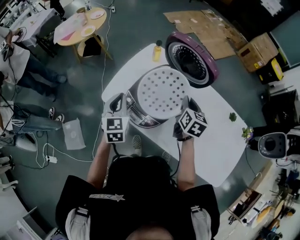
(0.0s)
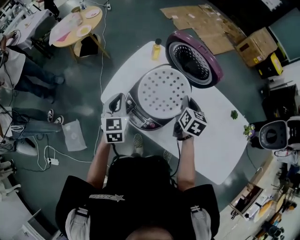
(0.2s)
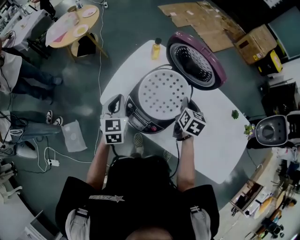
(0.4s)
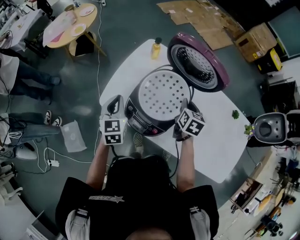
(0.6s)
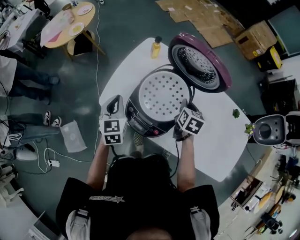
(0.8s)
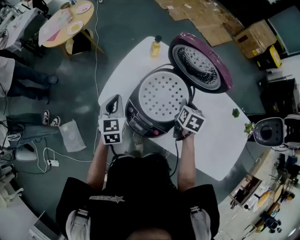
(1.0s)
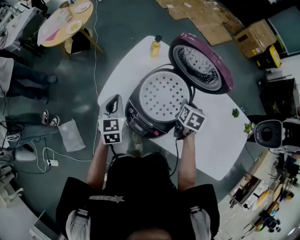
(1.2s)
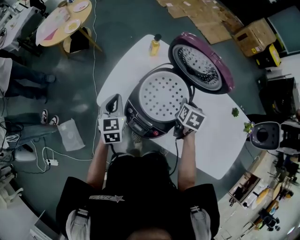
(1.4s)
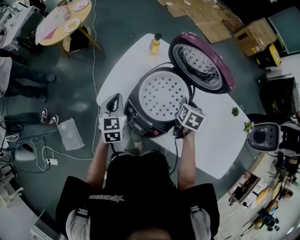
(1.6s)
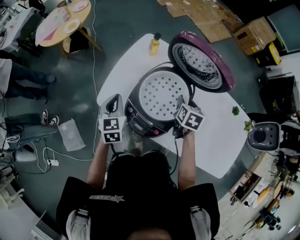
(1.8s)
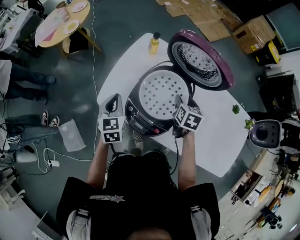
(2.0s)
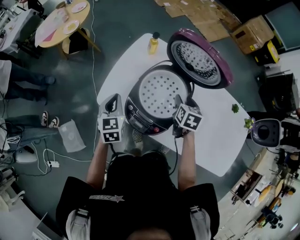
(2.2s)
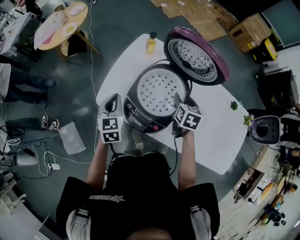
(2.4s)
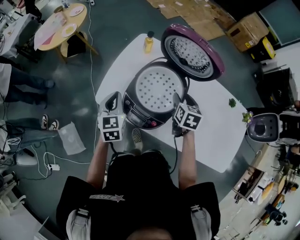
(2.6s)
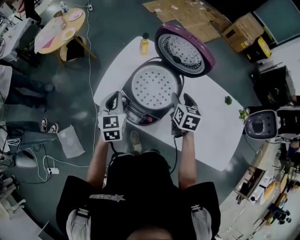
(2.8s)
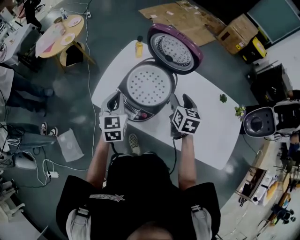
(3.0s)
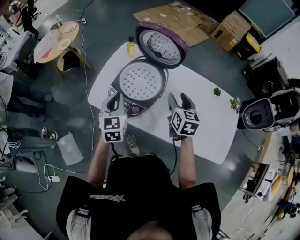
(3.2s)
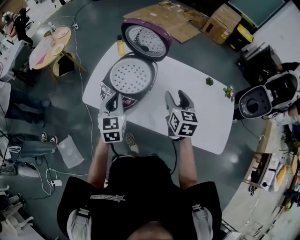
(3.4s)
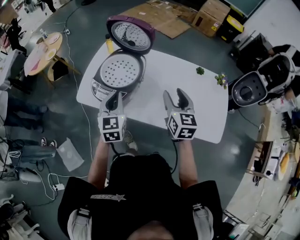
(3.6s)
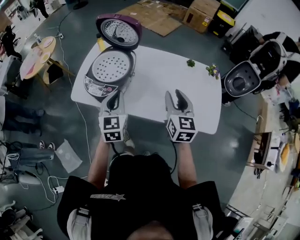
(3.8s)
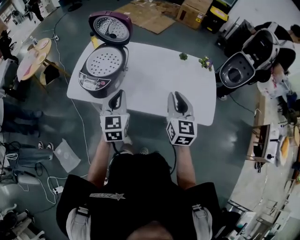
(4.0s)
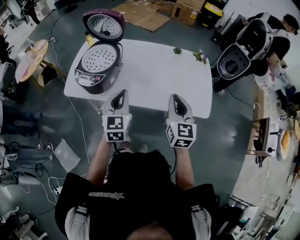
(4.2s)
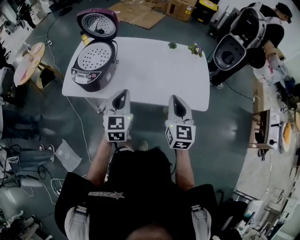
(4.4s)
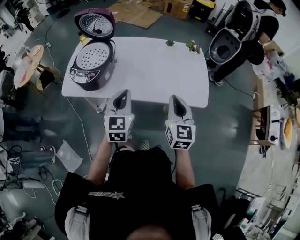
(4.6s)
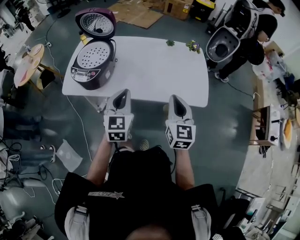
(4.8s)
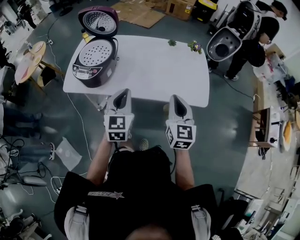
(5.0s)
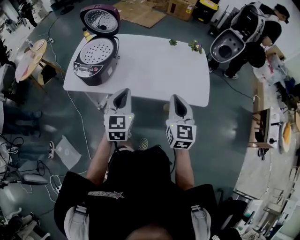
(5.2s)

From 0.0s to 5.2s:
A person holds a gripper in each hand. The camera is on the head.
From 0.0s to 1.8s: The left gripper travels downward and forward by roughly 10 cm, while the right gripper is displaced downward by some 10 cm, and opens.
From 1.8s to 3.4s: The right gripper goes some 25 cm backward, upward and to the right, and changes its angle by about 30 degrees. Meanwhile the left gripper shifts about 20 cm to the right, backward and upward.
From 3.4s to 5.2s: The left gripper goes some 30 cm to the right and backward, and swivels some 20 degrees, while the right gripper moves backward and to the right, some 35 cm, swivels about 20 degrees, and closes up.

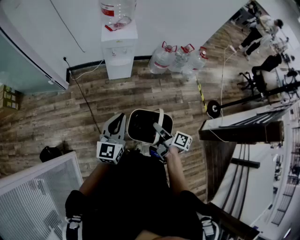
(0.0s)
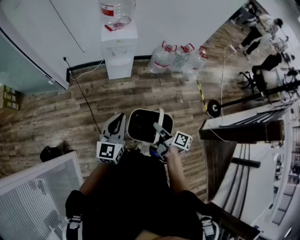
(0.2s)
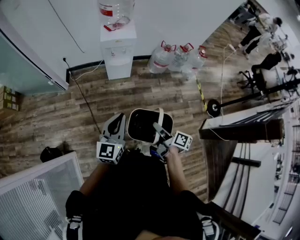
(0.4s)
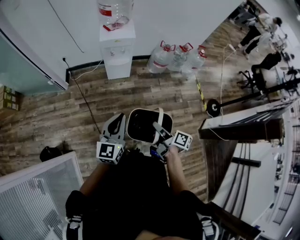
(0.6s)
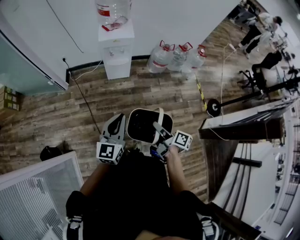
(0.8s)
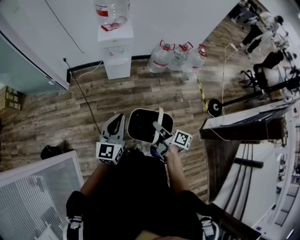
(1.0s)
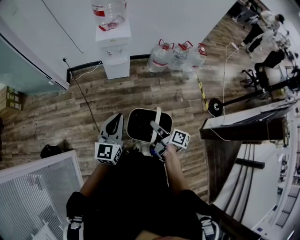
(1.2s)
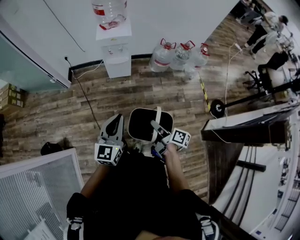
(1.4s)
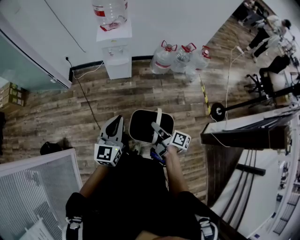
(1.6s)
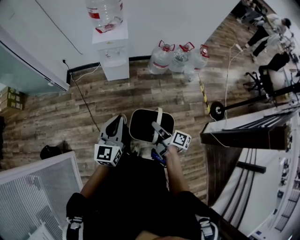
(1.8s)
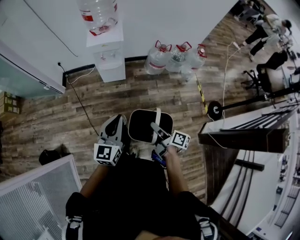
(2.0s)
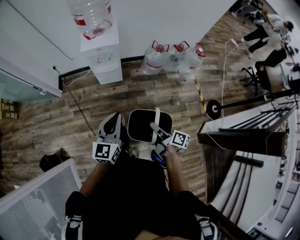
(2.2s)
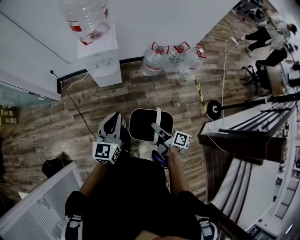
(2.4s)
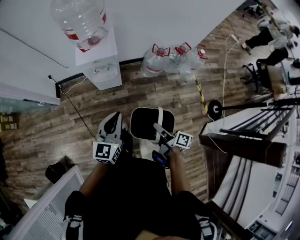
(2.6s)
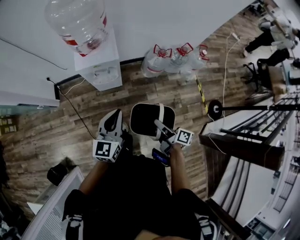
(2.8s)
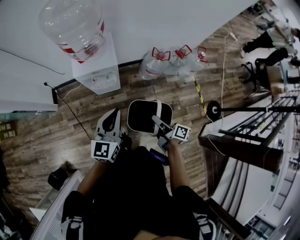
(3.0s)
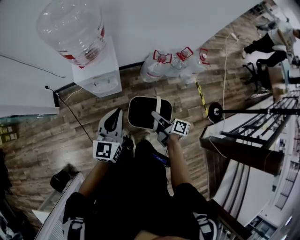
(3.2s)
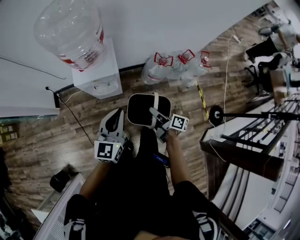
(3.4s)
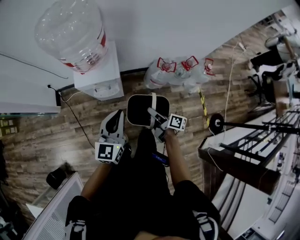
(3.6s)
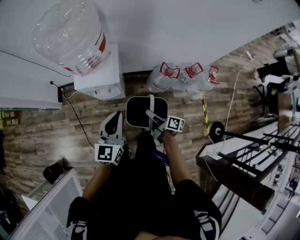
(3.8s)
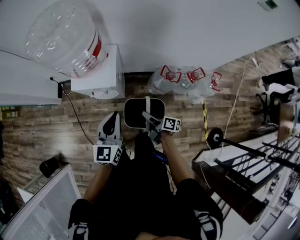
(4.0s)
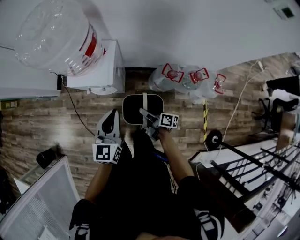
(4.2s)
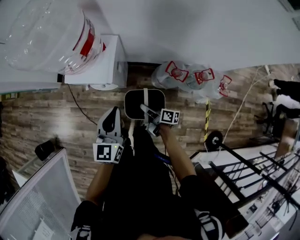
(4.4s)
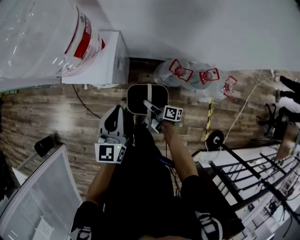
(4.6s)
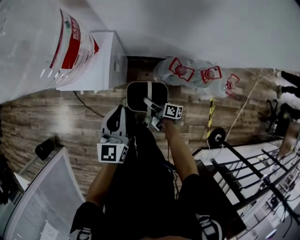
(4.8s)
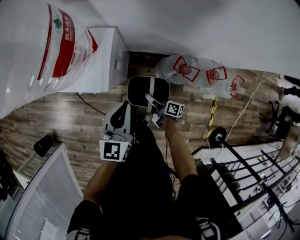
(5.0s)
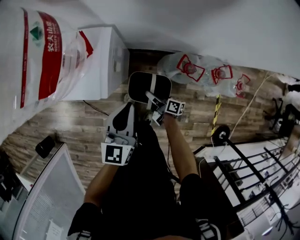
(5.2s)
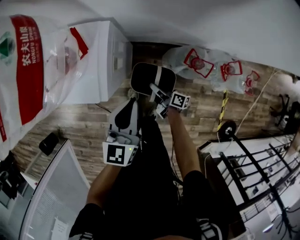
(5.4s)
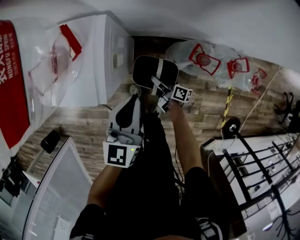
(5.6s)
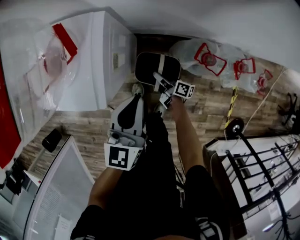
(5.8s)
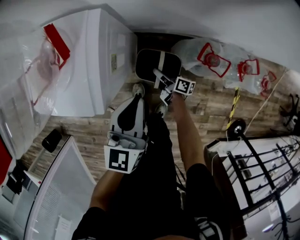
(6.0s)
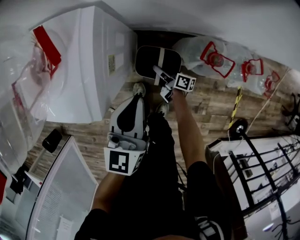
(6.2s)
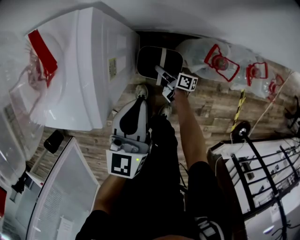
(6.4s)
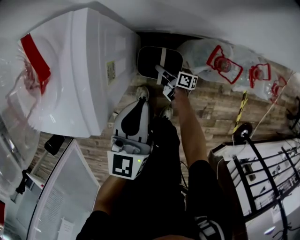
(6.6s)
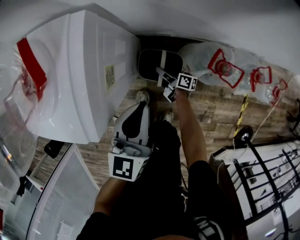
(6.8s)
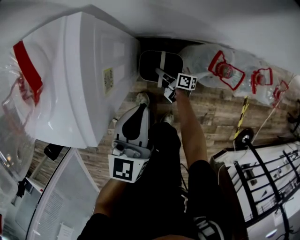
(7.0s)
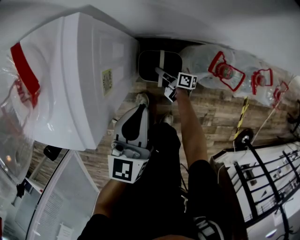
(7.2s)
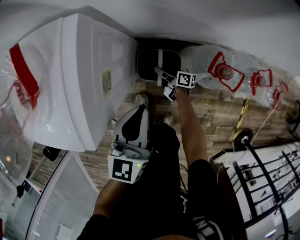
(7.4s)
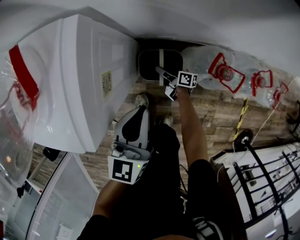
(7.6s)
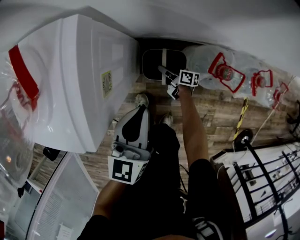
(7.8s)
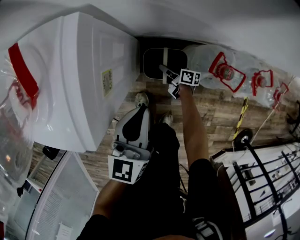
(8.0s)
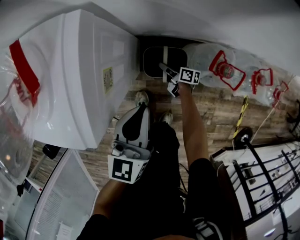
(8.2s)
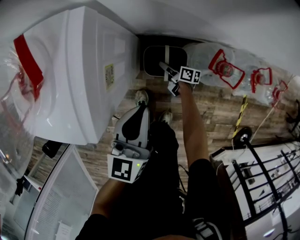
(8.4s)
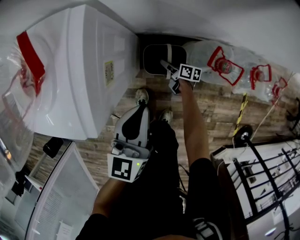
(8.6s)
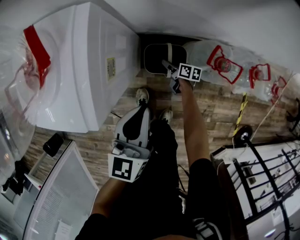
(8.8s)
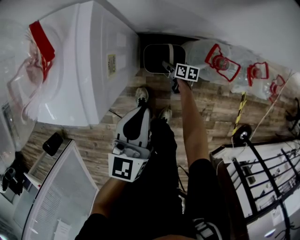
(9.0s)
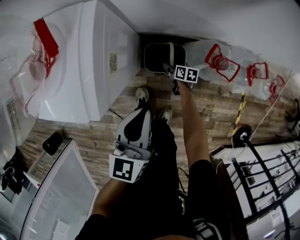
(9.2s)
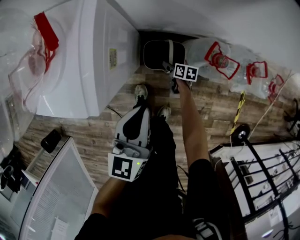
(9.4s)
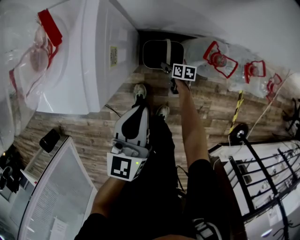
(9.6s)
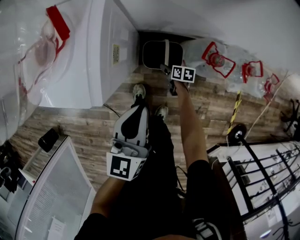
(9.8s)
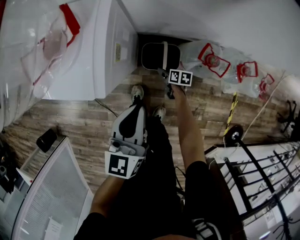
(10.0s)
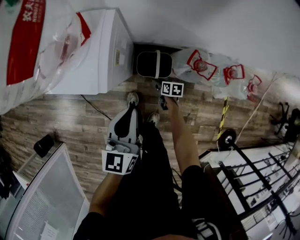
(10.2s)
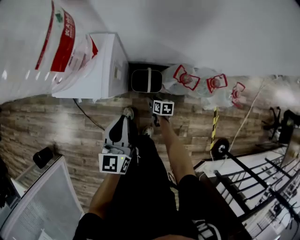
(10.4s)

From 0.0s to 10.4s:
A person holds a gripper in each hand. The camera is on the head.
From 0.0s to 1.4s: The left gripper shifts by some 10 cm.
From 1.4s to 3.0s: The left gripper changes place by some 40 cm.
From 3.0s to 4.4s: The left gripper ends up some 20 cm from where it was, and swivels about 30 degrees.
From 4.4s to 6.0s: The left gripper moves downward, approximately 20 cm.
From 6.0s to 7.4s: The left gripper moves downward, approximately 10 cm.
From 7.4s to 9.0s: The left gripper shifts by some 5 cm.
From 9.0s to 10.4s: The left gripper heads upward, covering approximately 15 cm.

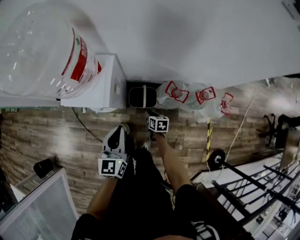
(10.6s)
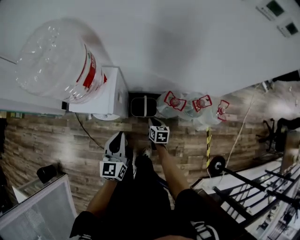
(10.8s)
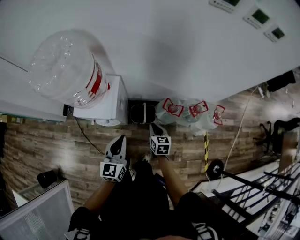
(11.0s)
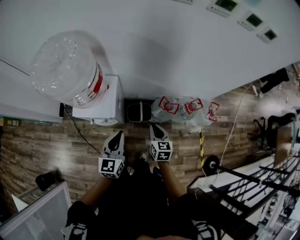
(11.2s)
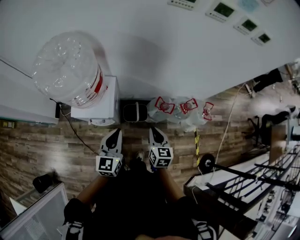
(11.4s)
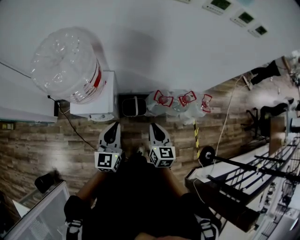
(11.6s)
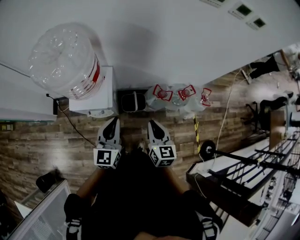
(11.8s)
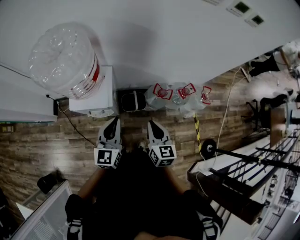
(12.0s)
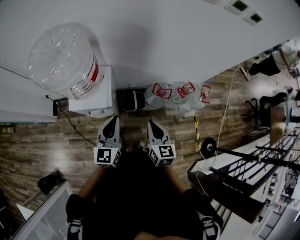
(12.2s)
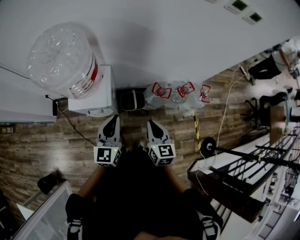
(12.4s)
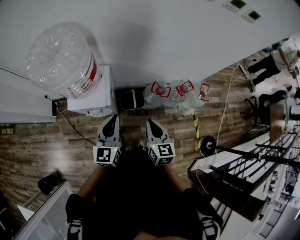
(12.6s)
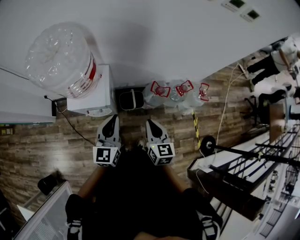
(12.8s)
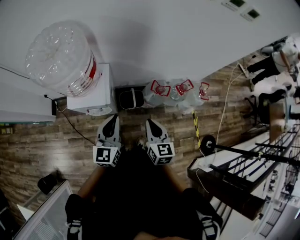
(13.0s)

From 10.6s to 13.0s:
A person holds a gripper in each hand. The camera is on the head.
From 10.6s to 11.8s: The left gripper goes some 15 cm upward.

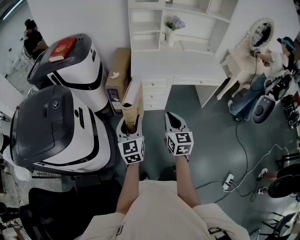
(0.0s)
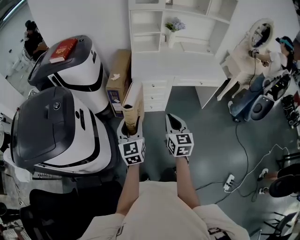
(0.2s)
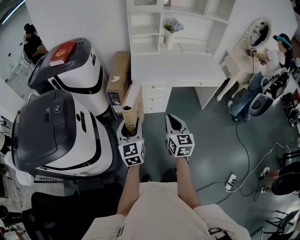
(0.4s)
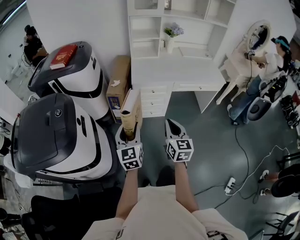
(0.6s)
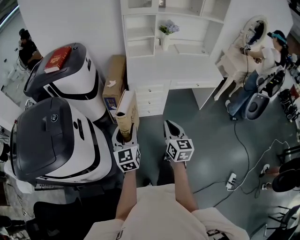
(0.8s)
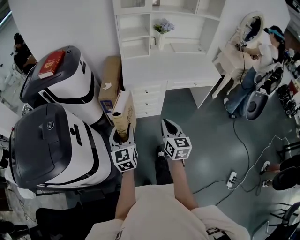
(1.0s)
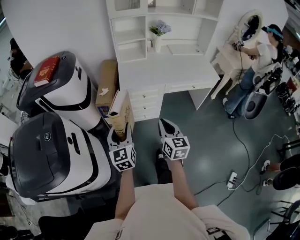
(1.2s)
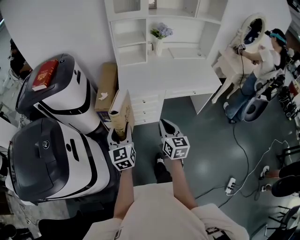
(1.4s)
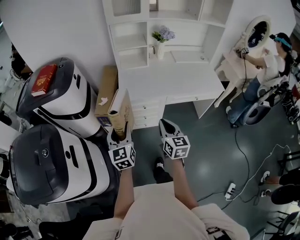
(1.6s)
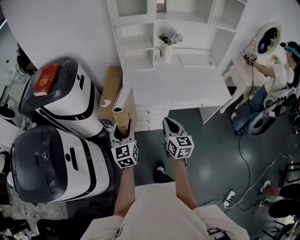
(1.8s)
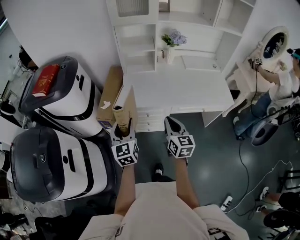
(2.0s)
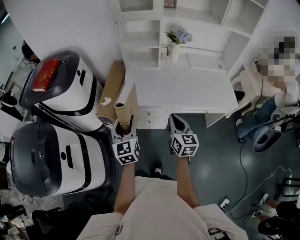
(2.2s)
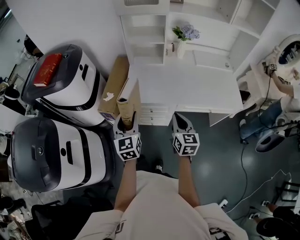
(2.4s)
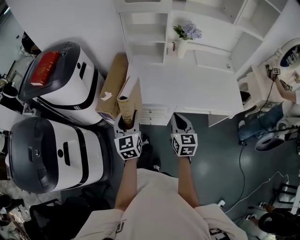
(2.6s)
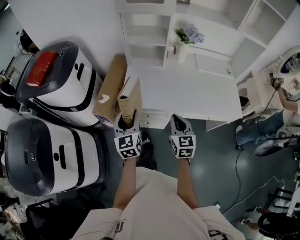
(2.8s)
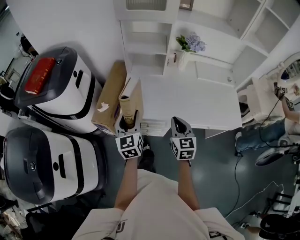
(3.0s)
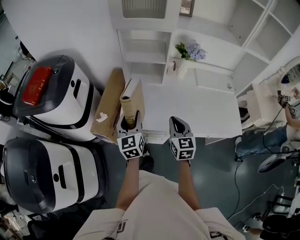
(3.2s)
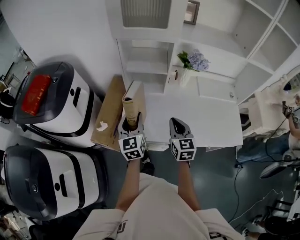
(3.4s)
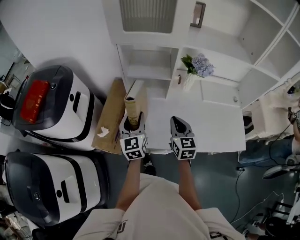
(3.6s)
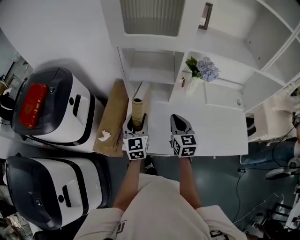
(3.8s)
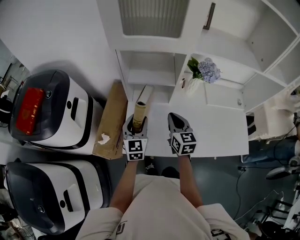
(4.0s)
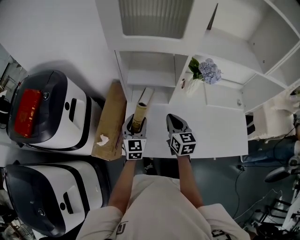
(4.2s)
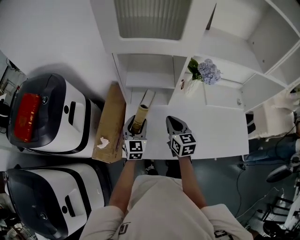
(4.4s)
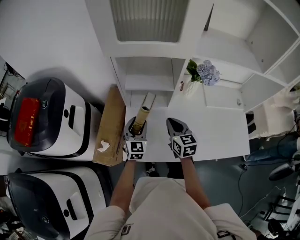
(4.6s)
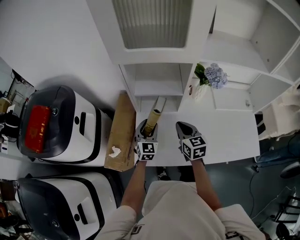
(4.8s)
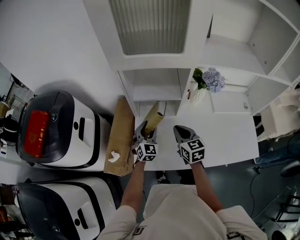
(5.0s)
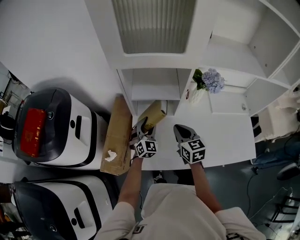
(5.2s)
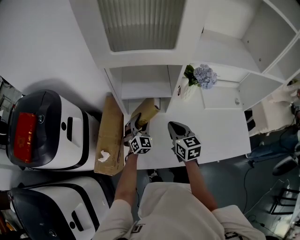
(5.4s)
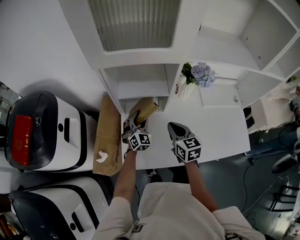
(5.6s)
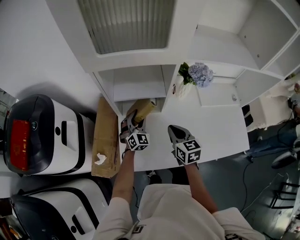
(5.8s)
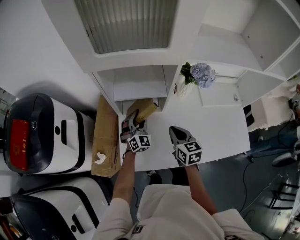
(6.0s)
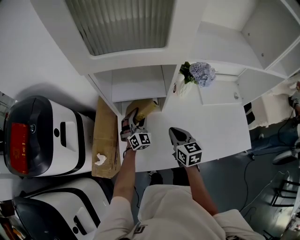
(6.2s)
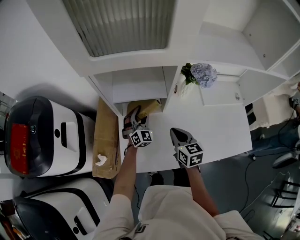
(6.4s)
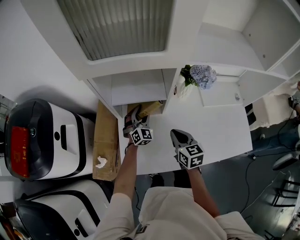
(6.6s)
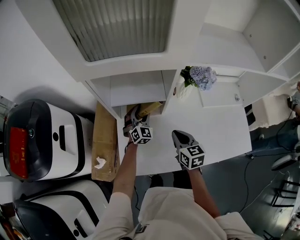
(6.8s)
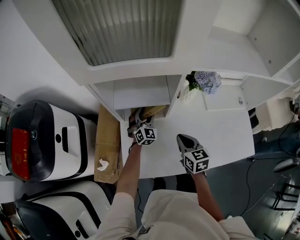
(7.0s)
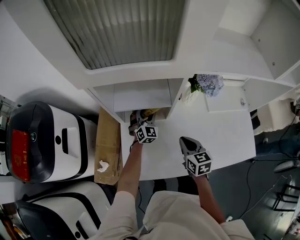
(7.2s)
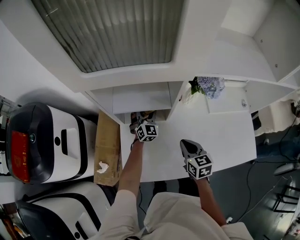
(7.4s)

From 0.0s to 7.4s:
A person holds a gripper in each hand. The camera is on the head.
From 0.0s to 1.4s: The grippers both shift forward by some 15 cm.
From 1.4s to 3.0s: The left gripper is displaced forward by approximately 30 cm; the right gripper is displaced forward and to the right by approximately 35 cm.
From 3.0s to 4.4s: Both grippers travel together forward, approximately 30 cm. The left gripper turns by about 20 degrees.
From 4.4s to 6.0s: The left gripper travels forward and to the right by approximately 10 cm, and swivels some 30 degrees. Meanwhile the right gripper changes place by roughly 5 cm.
From 6.0s to 7.4s: The right gripper ends up roughly 5 cm from where it was. The left gripper heads forward and to the right, covering some 10 cm.
